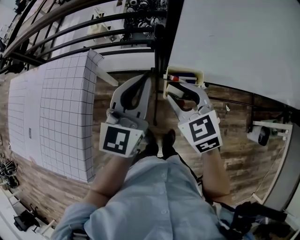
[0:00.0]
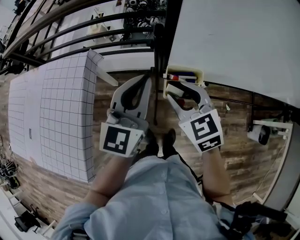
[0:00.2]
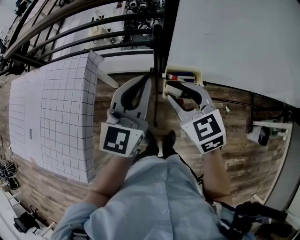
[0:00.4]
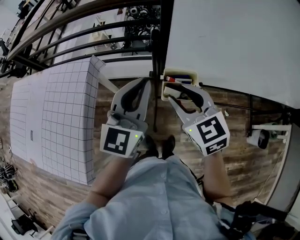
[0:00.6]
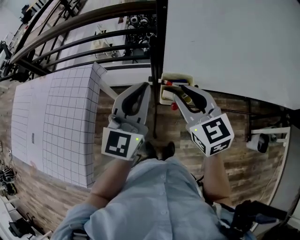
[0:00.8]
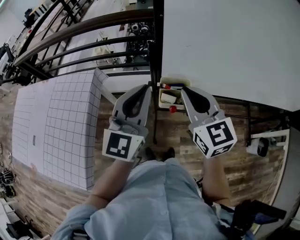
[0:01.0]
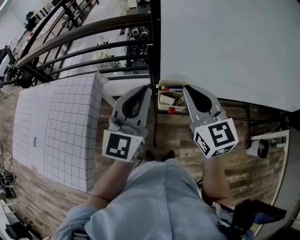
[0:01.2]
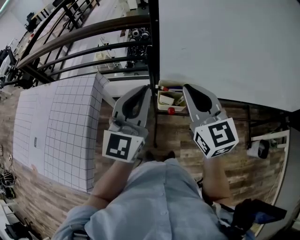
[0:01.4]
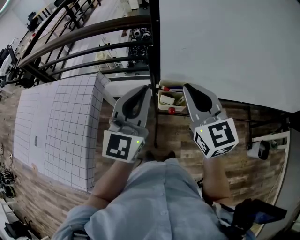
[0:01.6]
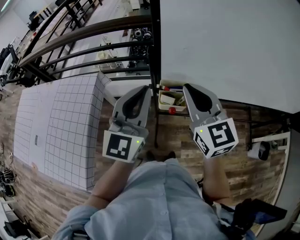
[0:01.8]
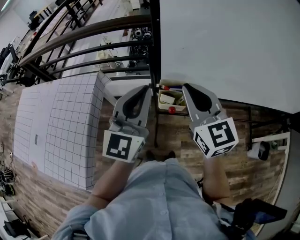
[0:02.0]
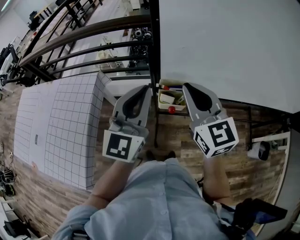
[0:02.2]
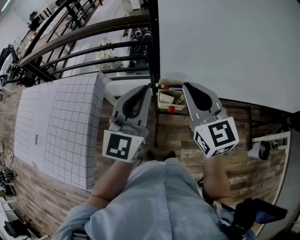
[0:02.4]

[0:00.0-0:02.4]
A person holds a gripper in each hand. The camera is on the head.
0:00.0 to 0:01.2: The left gripper heads upward and backward, covering about 10 cm. The right gripper heads upward and to the right, covering approximately 15 cm, changes its angle by some 30 degrees, and closes its fingers.
0:01.2 to 0:02.4: The grippers stay close to where they were, moving slightly.

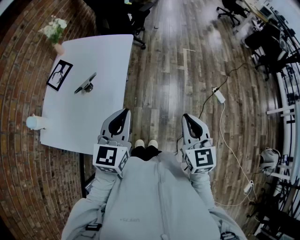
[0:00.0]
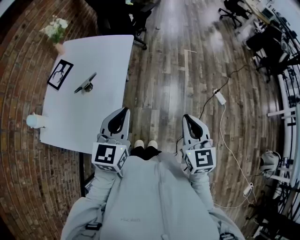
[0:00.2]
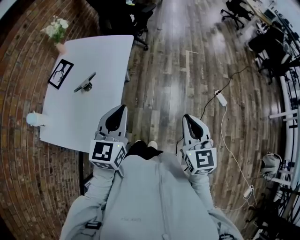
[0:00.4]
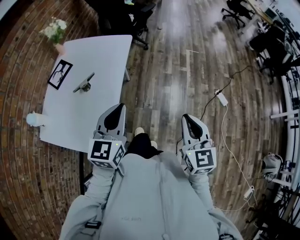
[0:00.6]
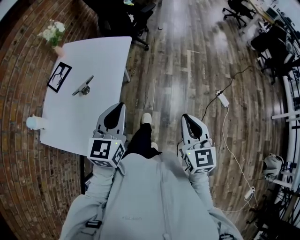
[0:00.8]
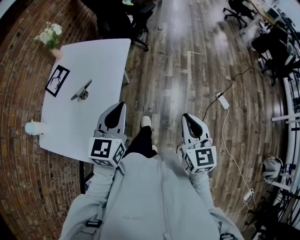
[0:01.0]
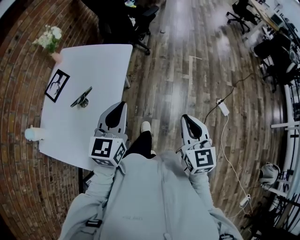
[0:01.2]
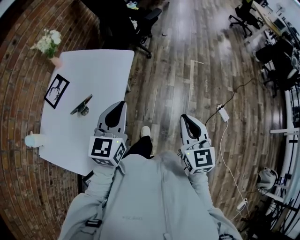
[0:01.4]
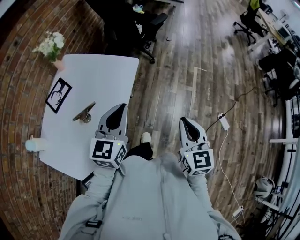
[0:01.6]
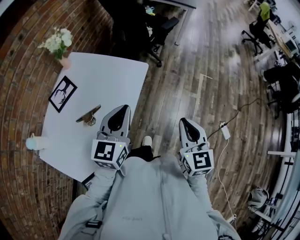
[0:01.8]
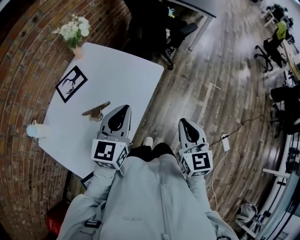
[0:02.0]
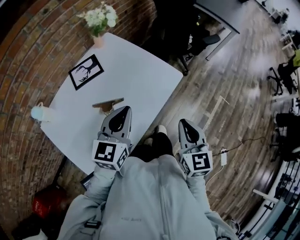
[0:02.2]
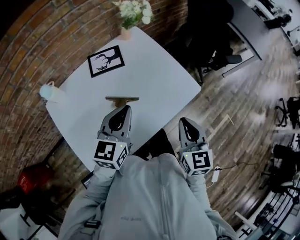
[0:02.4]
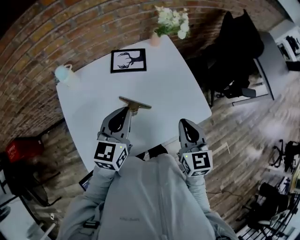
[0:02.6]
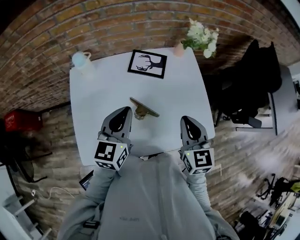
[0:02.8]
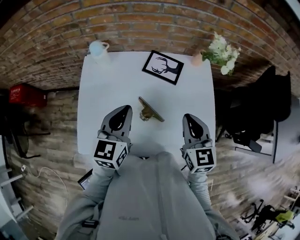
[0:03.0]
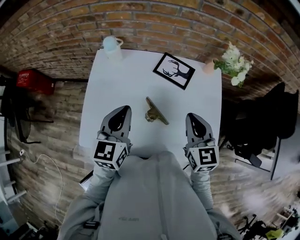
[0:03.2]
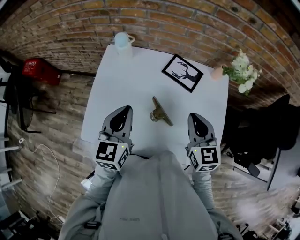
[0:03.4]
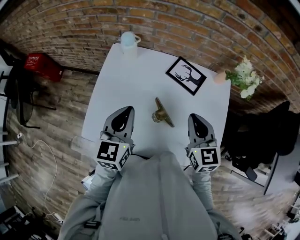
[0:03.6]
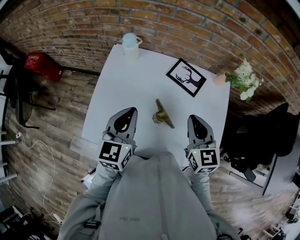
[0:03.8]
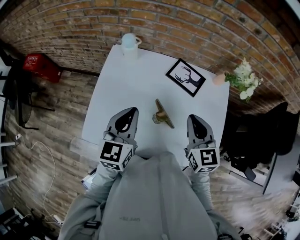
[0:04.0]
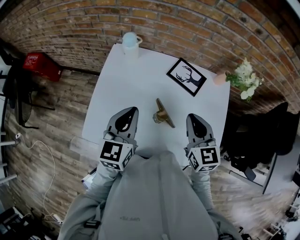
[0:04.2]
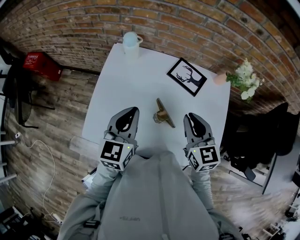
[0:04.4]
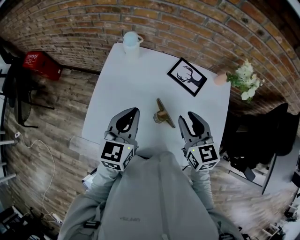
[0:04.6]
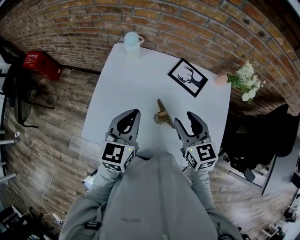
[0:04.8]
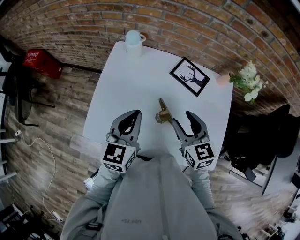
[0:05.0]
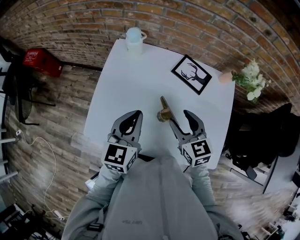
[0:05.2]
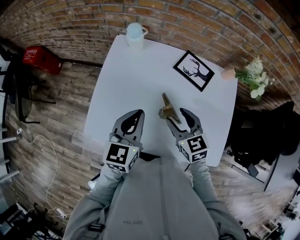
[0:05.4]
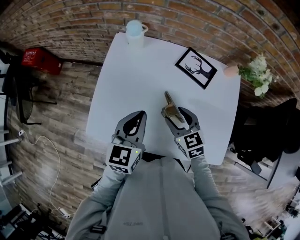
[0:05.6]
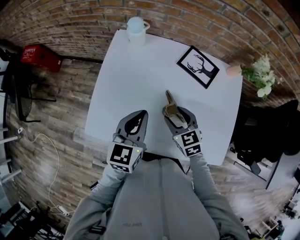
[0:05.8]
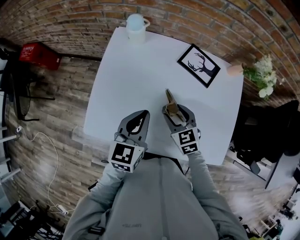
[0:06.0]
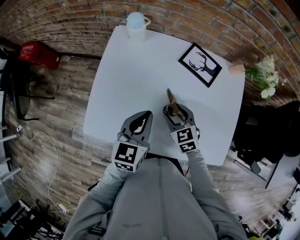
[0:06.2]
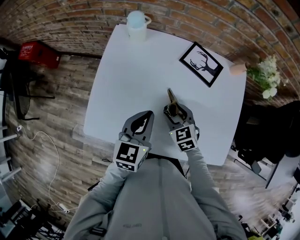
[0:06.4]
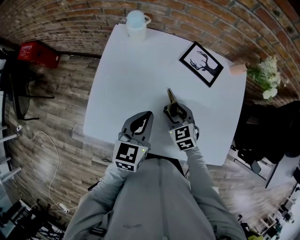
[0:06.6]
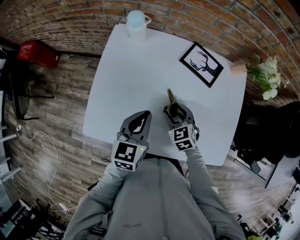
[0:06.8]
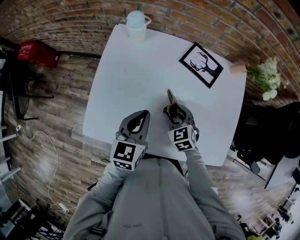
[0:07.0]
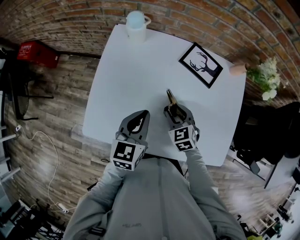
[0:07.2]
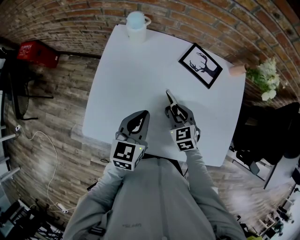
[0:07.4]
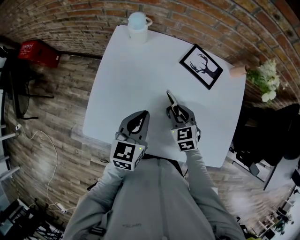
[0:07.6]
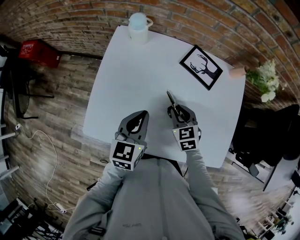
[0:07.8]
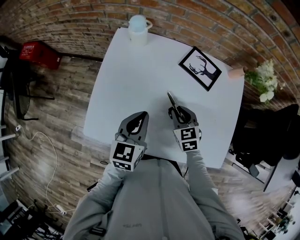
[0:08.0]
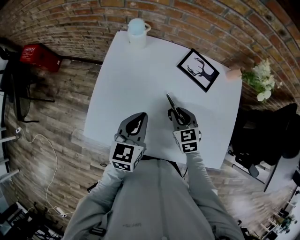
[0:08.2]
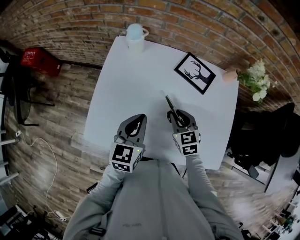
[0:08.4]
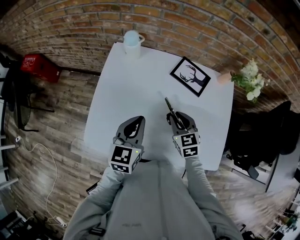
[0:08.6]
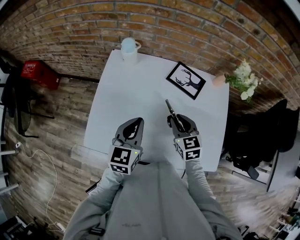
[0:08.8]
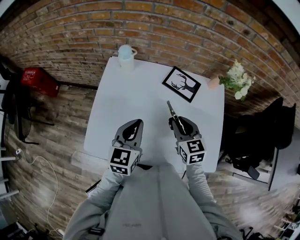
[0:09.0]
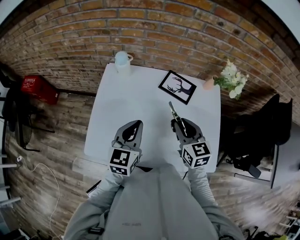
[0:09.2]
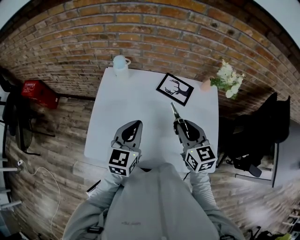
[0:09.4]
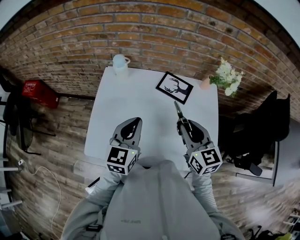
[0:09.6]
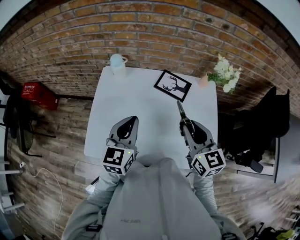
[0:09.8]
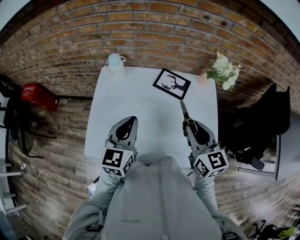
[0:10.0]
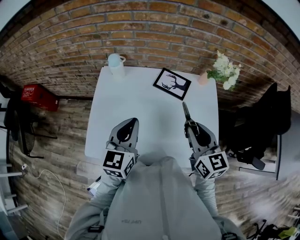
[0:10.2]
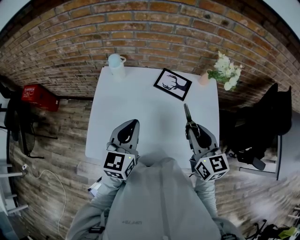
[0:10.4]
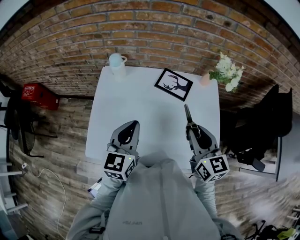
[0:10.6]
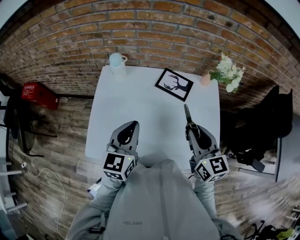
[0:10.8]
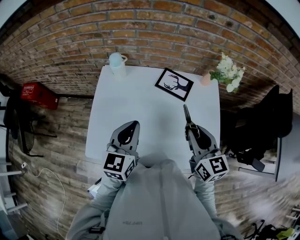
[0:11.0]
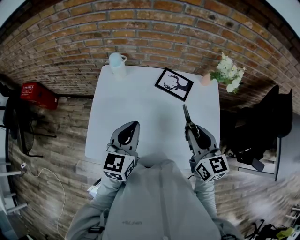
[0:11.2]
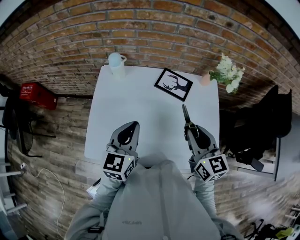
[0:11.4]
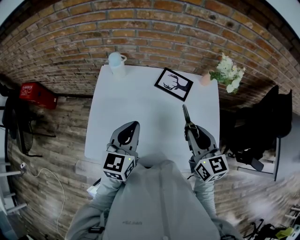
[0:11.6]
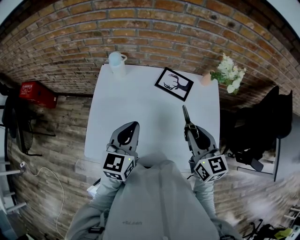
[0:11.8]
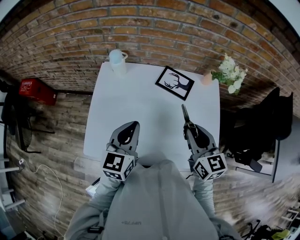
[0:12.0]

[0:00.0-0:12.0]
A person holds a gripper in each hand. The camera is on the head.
0:00.0 to 0:01.6: The grippers both shift forward by approximately 20 cm.
0:01.6 to 0:03.0: The right gripper ends up some 50 cm from where it was, and changes its angle by approximately 80 degrees; the left gripper shifts by about 30 cm, and changes its angle by approximately 80 degrees.
0:03.0 to 0:04.4: The two grippers go approximately 5 cm to the left.
0:04.4 to 0:06.0: The right gripper travels downward and to the left by about 20 cm, rotates approximately 20 degrees, and opens its fingers. The left gripper shifts some 5 cm downward.
0:06.0 to 0:07.6: The right gripper closes up.
0:07.6 to 0:09.0: The right gripper goes roughly 15 cm upward, and changes its angle by some 20 degrees, while the left gripper goes about 5 cm upward.
0:09.0 to 0:10.4: The right gripper travels upward, to the right and backward by about 15 cm; the left gripper goes about 5 cm upward.
0:10.4 to 0:12.0: The grippers make only small movements.

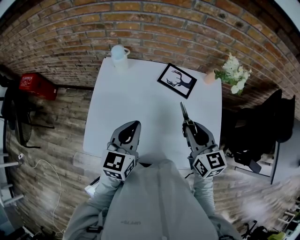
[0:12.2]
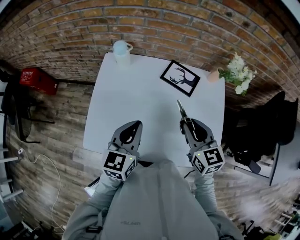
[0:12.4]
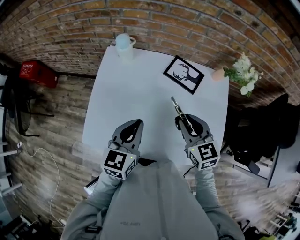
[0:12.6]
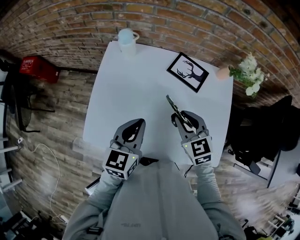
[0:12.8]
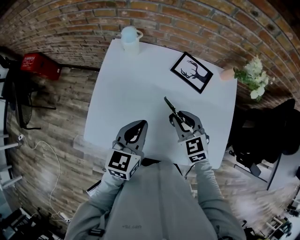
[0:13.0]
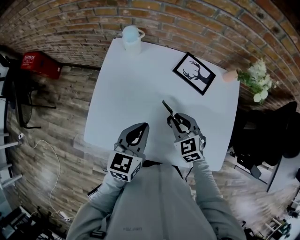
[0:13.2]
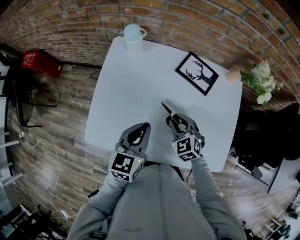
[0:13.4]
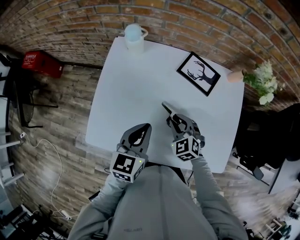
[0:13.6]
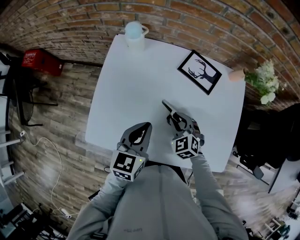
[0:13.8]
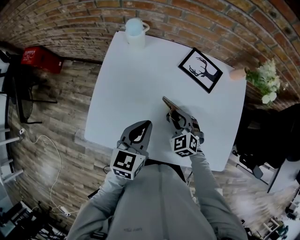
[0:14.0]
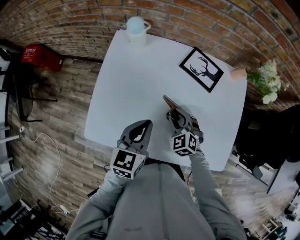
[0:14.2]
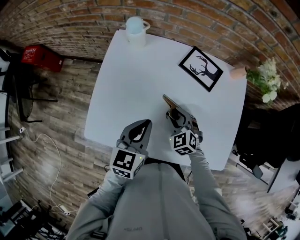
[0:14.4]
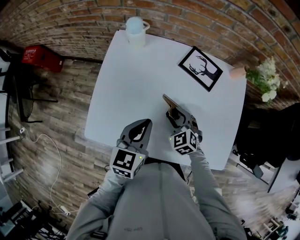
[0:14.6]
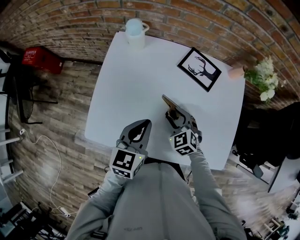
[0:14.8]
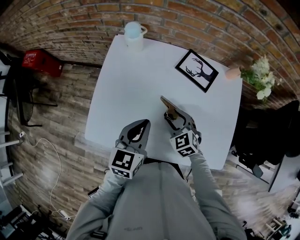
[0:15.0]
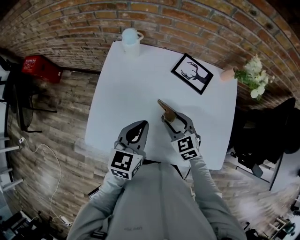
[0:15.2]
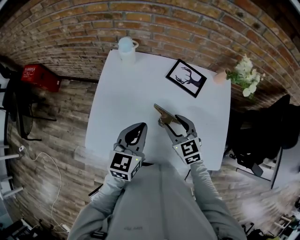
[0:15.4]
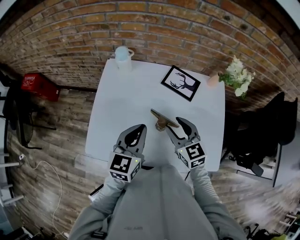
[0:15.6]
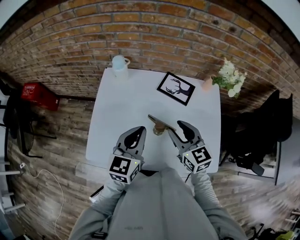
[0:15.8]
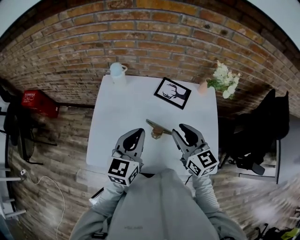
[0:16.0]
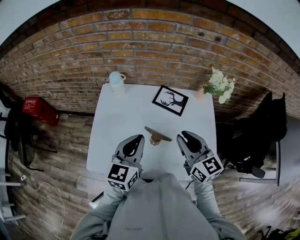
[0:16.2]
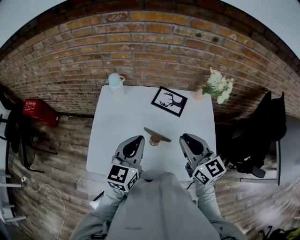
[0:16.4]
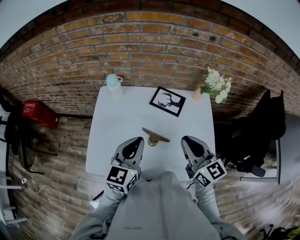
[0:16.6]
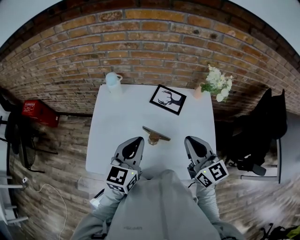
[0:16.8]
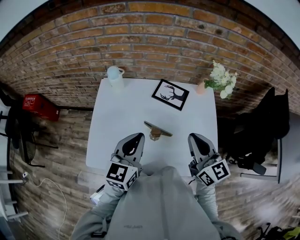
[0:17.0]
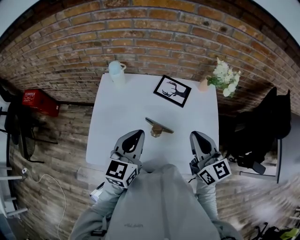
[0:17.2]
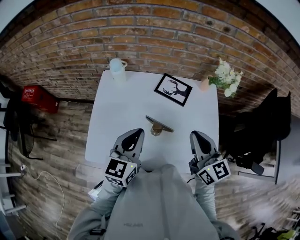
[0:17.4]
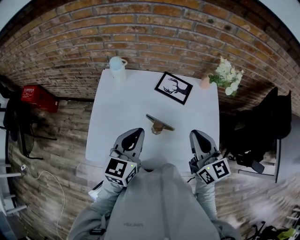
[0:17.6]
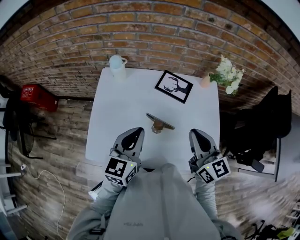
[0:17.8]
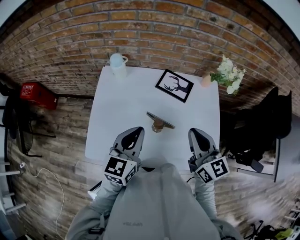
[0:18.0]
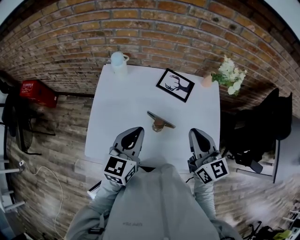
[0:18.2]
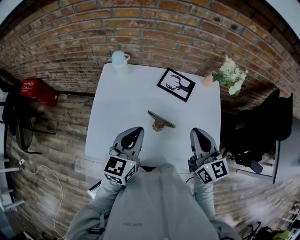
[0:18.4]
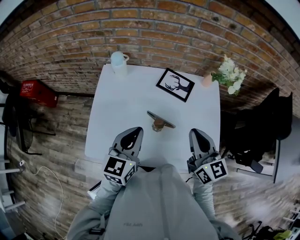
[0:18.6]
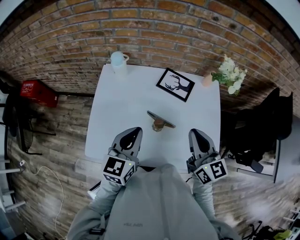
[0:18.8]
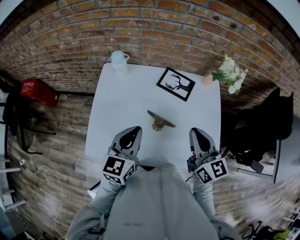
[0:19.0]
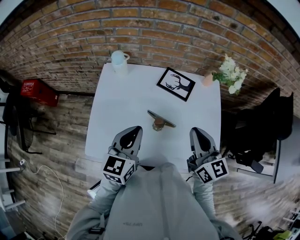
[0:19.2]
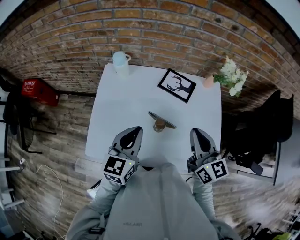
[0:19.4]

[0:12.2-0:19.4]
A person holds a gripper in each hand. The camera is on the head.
0:12.2 to 0:13.6: The right gripper moves downward and to the left, approximately 20 cm, and rotates roughly 50 degrees; the left gripper shifts approximately 10 cm downward.
0:13.6 to 0:15.0: The right gripper opens.
0:15.0 to 0:16.6: The left gripper moves upward, roughly 10 cm, while the right gripper travels upward and to the right by roughly 25 cm, tilts its fingers approximately 40 degrees upward, and closes up.
0:16.6 to 0:18.0: The grippers stay close to where they were, moving slightly.
0:18.0 to 0:19.4: Both grippers stay put.

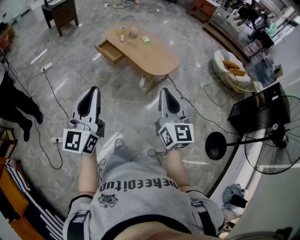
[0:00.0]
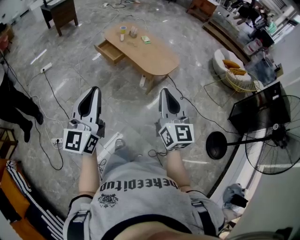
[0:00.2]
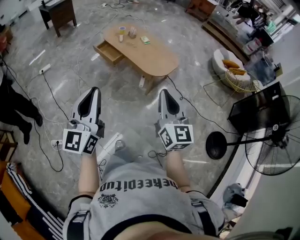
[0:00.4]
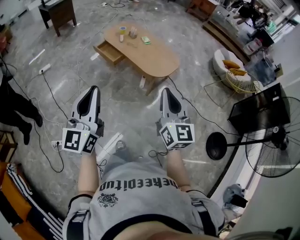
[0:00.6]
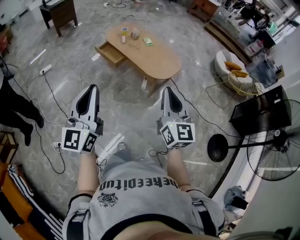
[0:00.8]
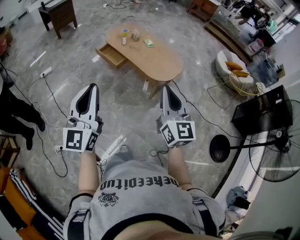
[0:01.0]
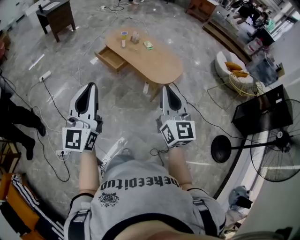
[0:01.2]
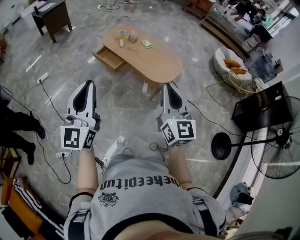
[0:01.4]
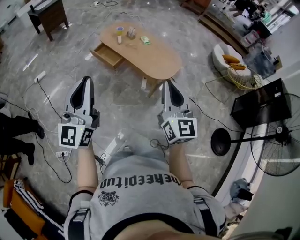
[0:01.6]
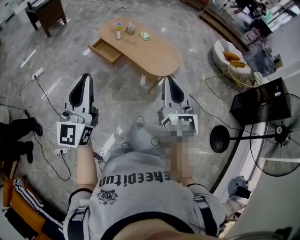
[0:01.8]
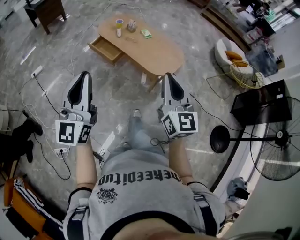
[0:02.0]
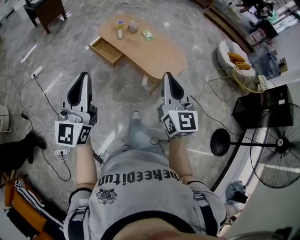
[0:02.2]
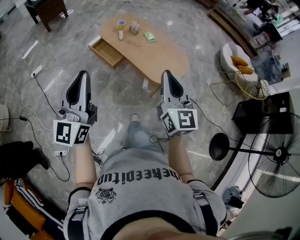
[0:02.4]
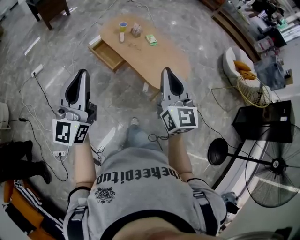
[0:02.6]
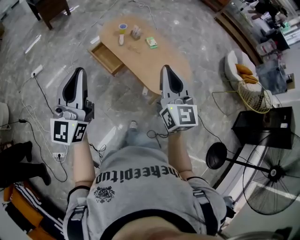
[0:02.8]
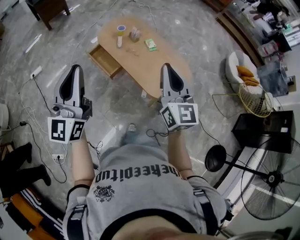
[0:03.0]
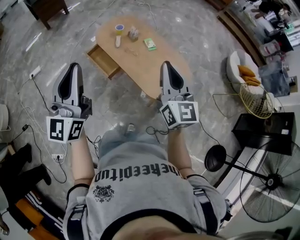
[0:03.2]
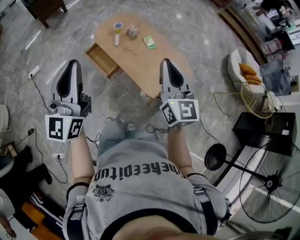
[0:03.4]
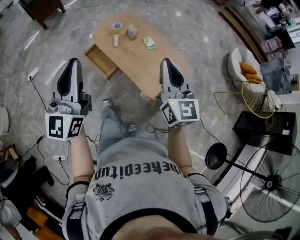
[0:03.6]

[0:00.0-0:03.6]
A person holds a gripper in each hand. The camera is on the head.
0:00.0 to 0:01.8: Both grippers move forward and to the left, some 20 cm.
0:01.8 to 0:03.6: The grippers both shift forward by roughly 40 cm.
